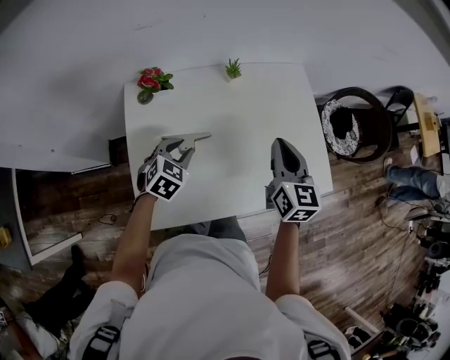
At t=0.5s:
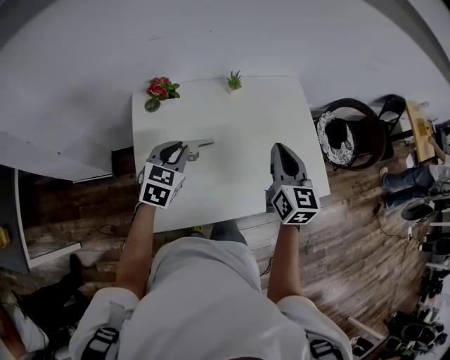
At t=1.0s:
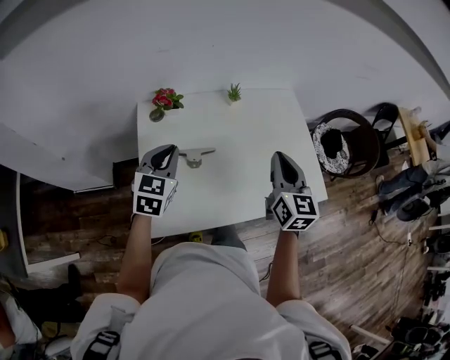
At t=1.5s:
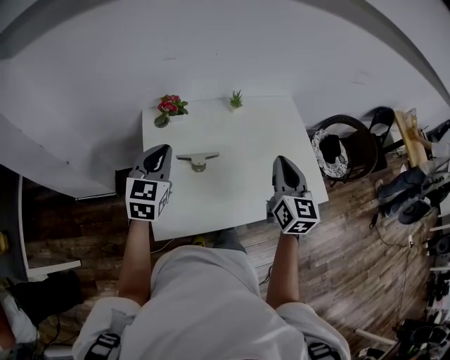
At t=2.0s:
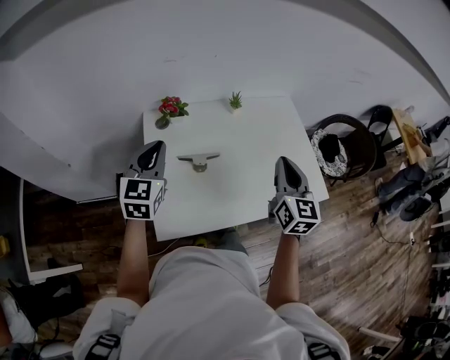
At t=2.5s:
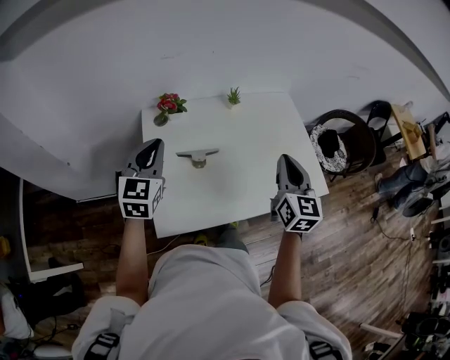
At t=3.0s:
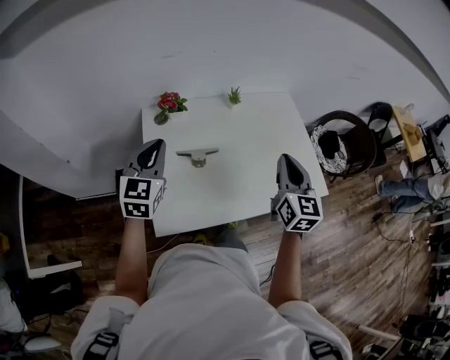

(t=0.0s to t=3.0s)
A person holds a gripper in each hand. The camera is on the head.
t=0.0s - t=1.5s: The right gripper heads backward and upward, covering about 10 cm. The left gripper is displaced upward and to the left by roughly 20 cm, angles its fingers upward, by approximately 30 degrees, and closes its fingers.
t=1.5s - t=3.0s: The grippers stay close to where they were, moving slightly.

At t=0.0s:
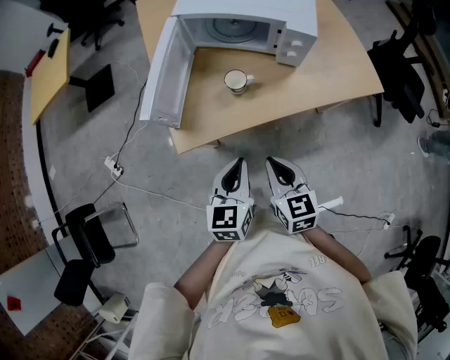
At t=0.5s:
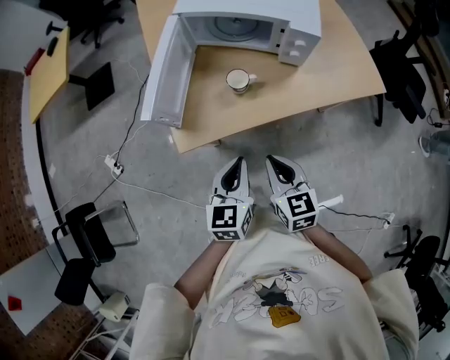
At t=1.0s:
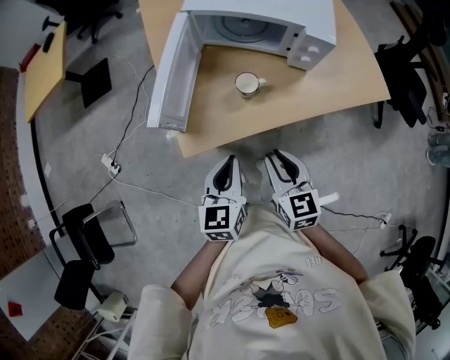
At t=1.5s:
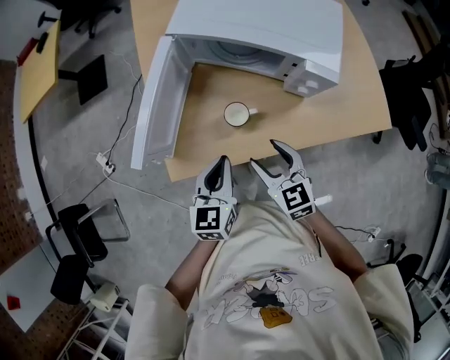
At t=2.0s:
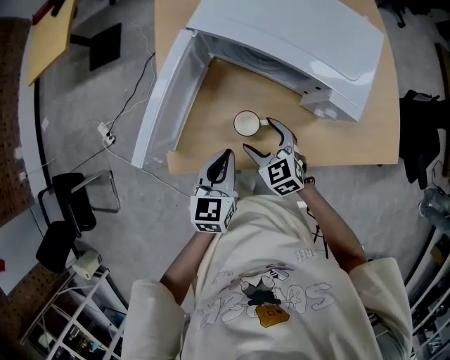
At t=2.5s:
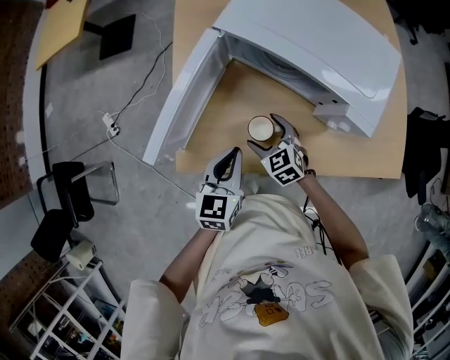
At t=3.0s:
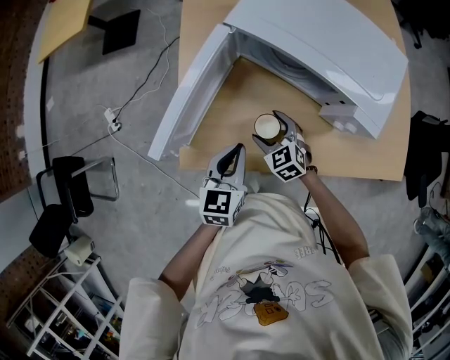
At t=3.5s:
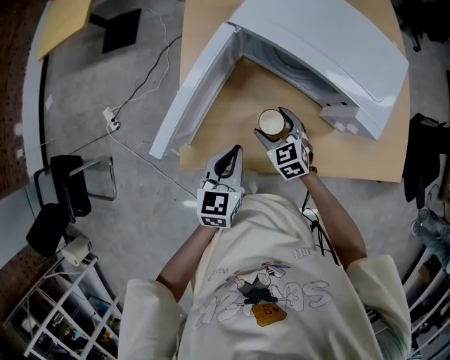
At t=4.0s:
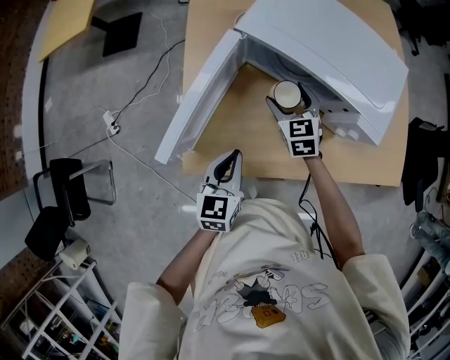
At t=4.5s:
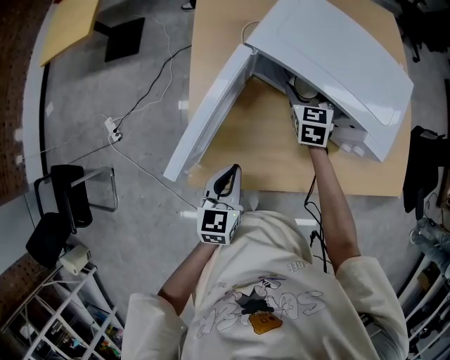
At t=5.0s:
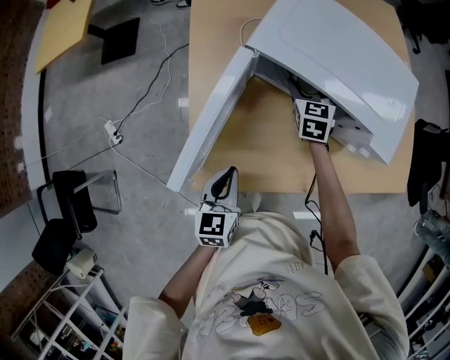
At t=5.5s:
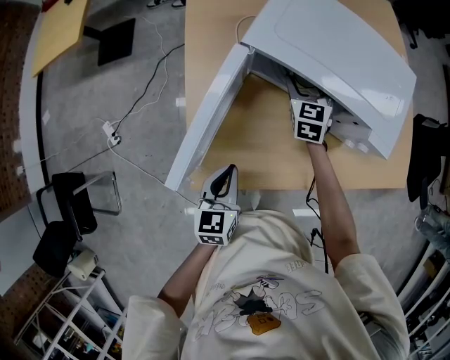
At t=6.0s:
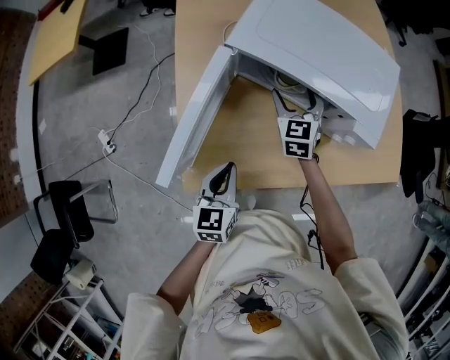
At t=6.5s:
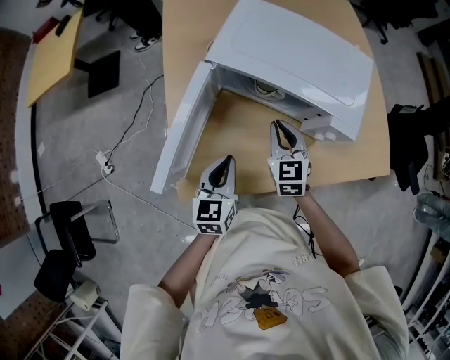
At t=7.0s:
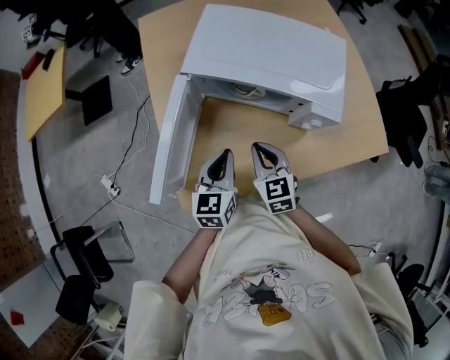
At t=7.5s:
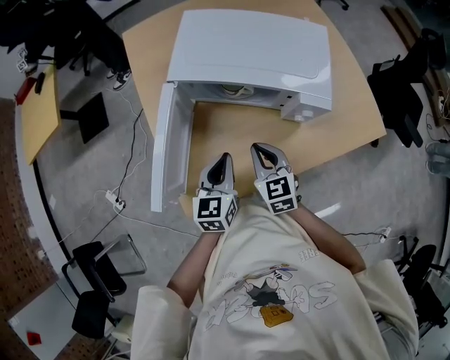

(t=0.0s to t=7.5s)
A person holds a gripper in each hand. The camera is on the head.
t=0.0s - t=2.0s: Both grippers move forward, some 25 cm. The right gripper changes its angle by about 40 degrees, and opens.
t=2.0s - t=4.0s: The left gripper changes place by about 5 cm. Meanwhile the right gripper is displaced forward by about 15 cm.
t=4.0s - t=5.5s: The right gripper travels forward by some 10 cm, and turns by some 20 degrees.
t=5.5s - t=7.5s: The left gripper travels to the right and forward by approximately 10 cm; the right gripper is displaced backward by roughly 25 cm, and closes up.

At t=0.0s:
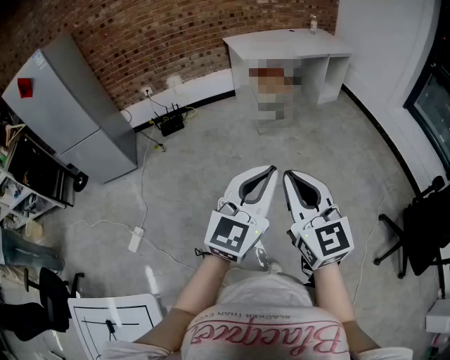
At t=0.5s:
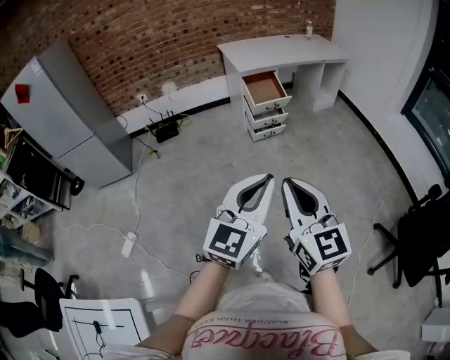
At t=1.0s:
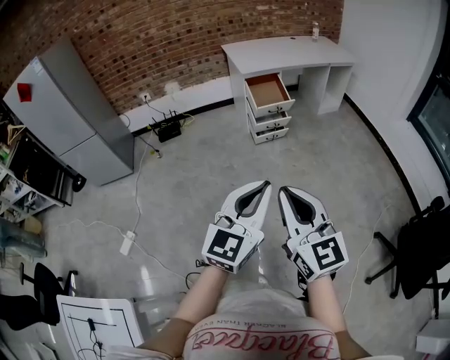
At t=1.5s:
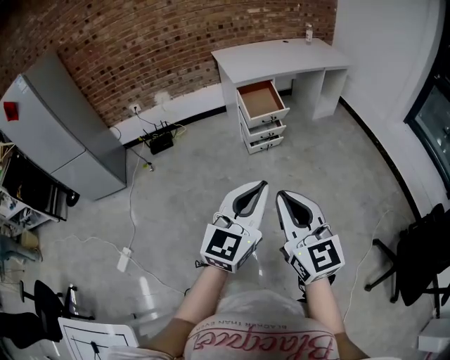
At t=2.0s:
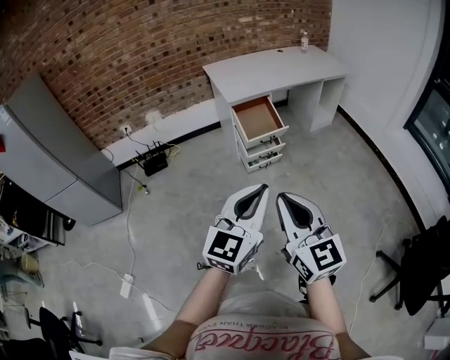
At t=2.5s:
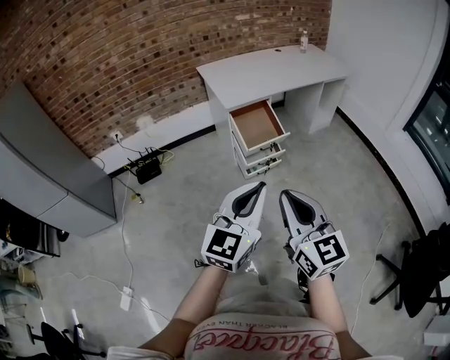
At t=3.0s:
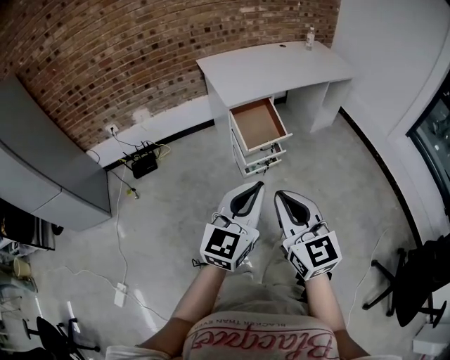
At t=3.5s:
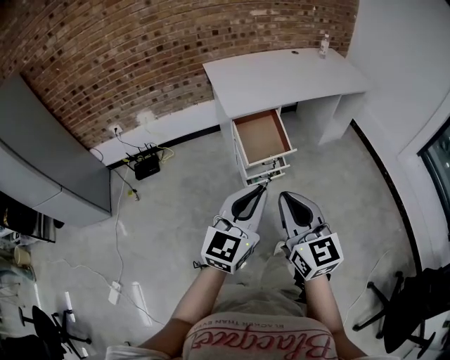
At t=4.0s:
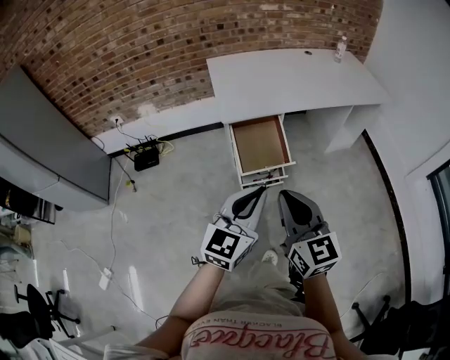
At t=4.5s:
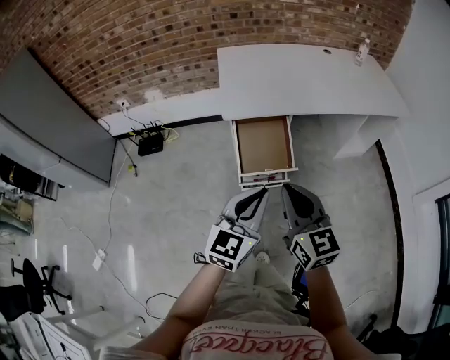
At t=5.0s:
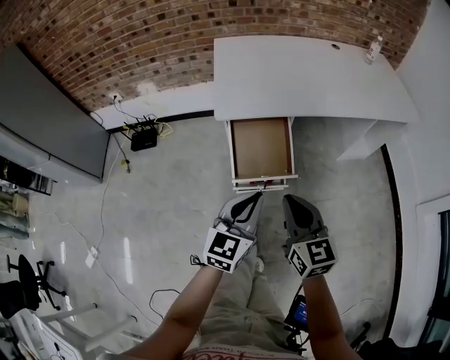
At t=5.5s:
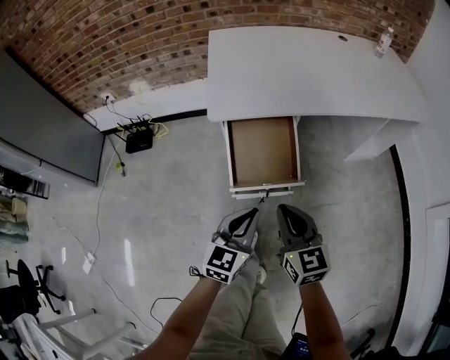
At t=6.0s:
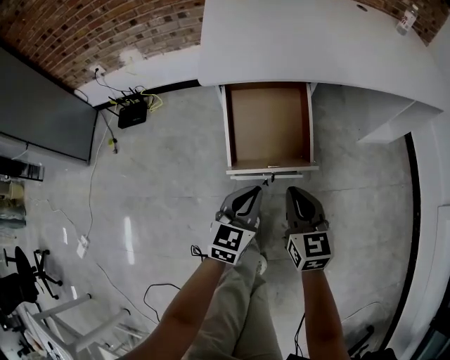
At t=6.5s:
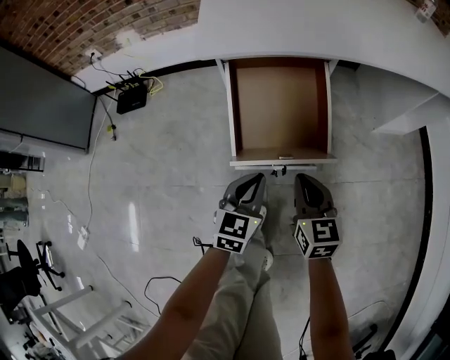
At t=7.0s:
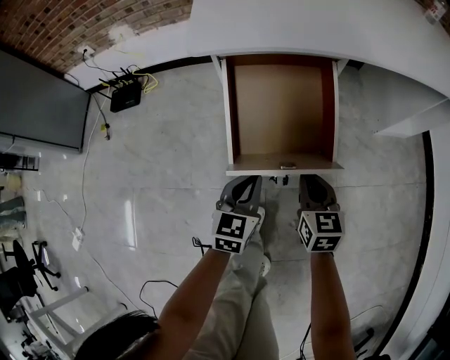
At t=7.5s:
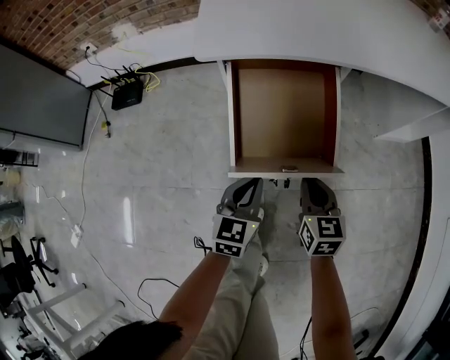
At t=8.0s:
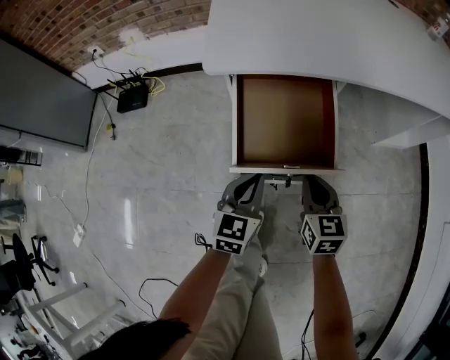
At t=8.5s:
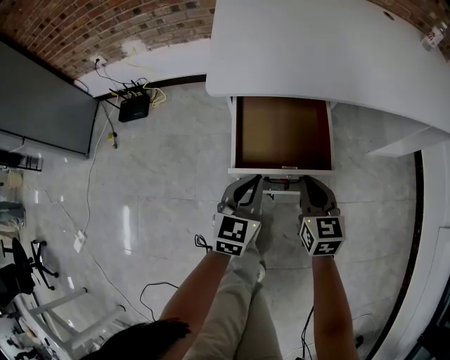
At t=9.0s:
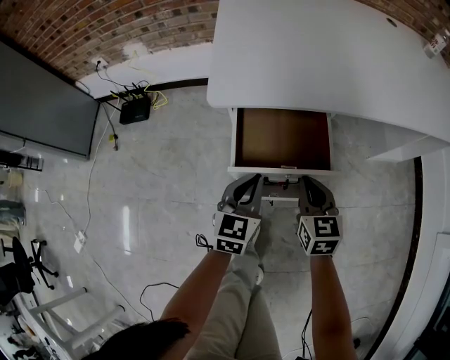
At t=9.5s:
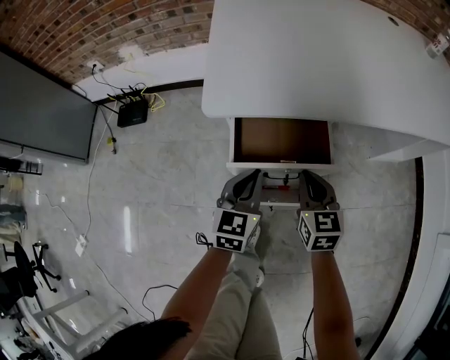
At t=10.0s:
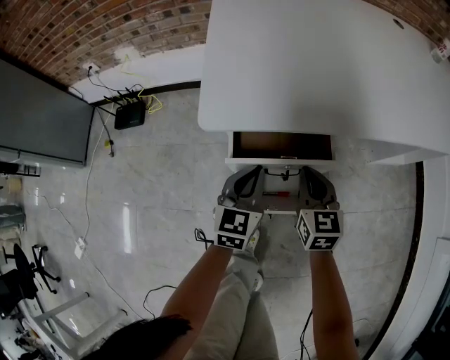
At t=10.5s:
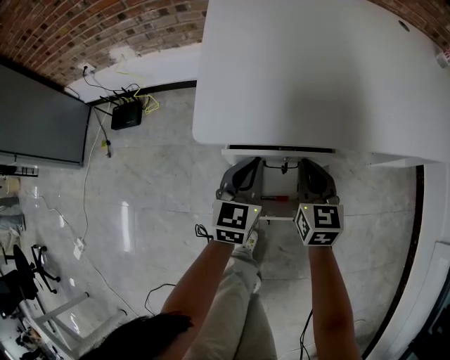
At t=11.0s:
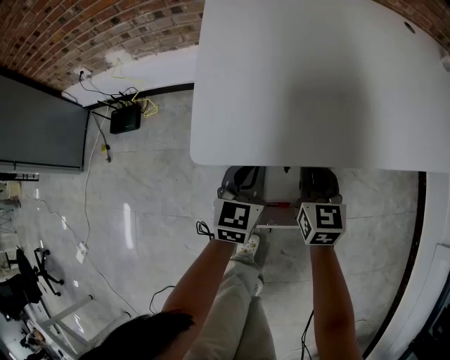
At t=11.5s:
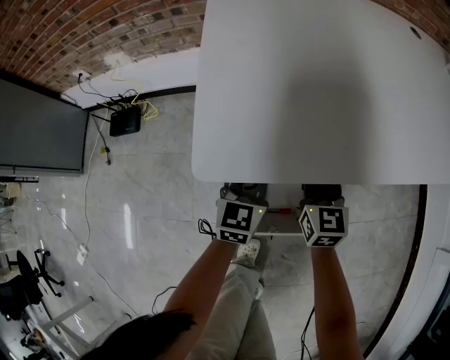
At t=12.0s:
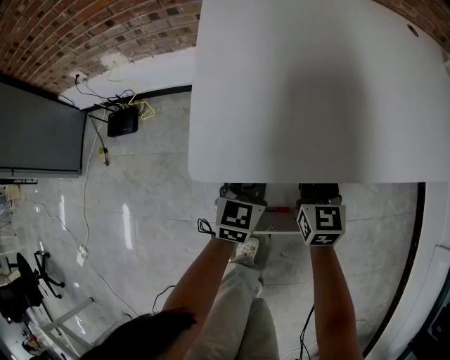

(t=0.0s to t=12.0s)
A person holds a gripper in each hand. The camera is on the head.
t=0.0s - t=2.0s: Both grippers travel together forward, approximately 30 cm.
t=2.0s - t=4.0s: Both grippers travel together forward, roughly 40 cm.
t=4.0s - t=6.0s: Both grippers travel together downward and forward, roughly 40 cm. The left gripper swivels approximately 20 degrees.
t=6.0s - t=8.0s: The left gripper shifts some 10 cm forward and downward. Meanwhile the right gripper goes about 15 cm downward and forward.
t=8.0s - t=10.0s: Both grippers move forward, about 10 cm.
t=10.0s - t=12.0s: The grippers both shift forward by approximately 10 cm.

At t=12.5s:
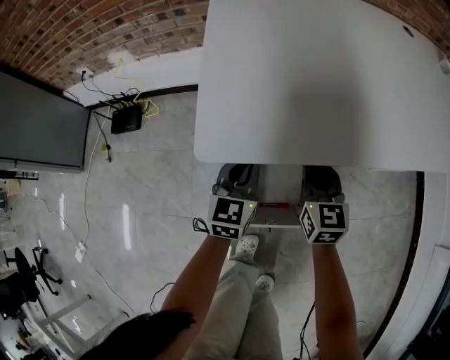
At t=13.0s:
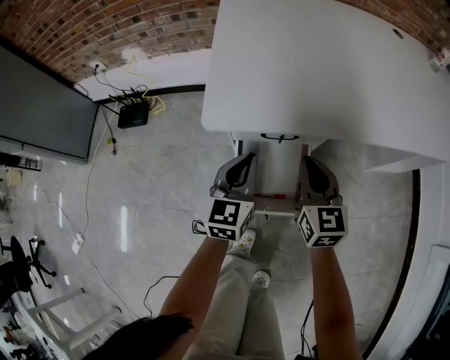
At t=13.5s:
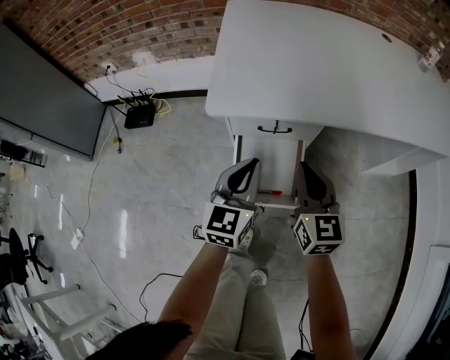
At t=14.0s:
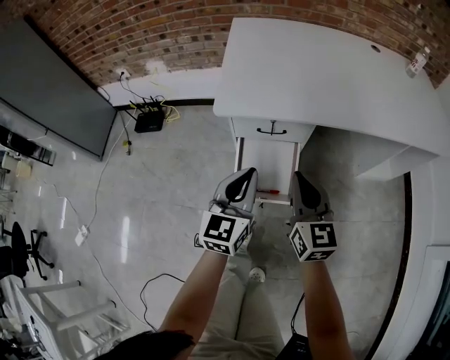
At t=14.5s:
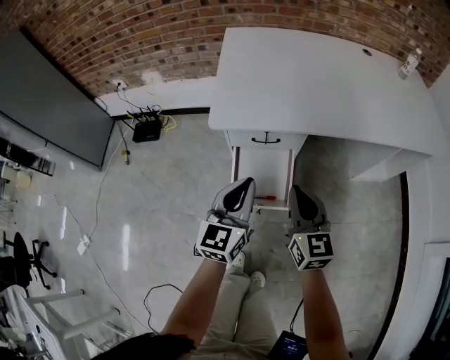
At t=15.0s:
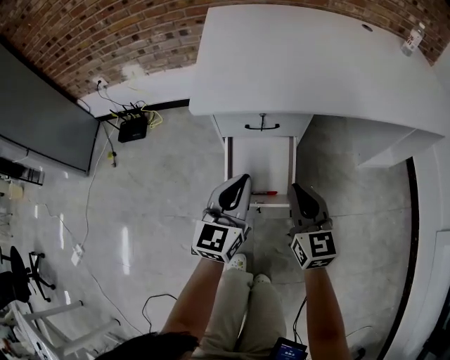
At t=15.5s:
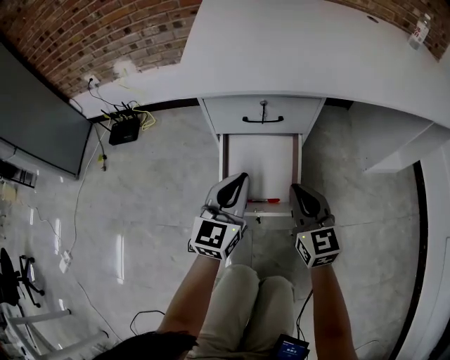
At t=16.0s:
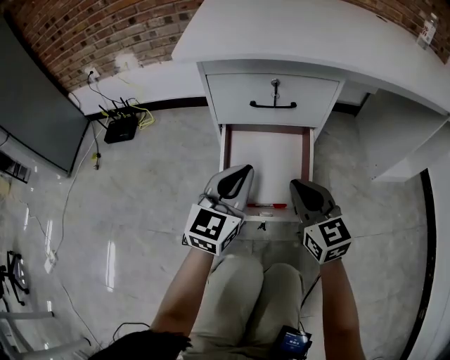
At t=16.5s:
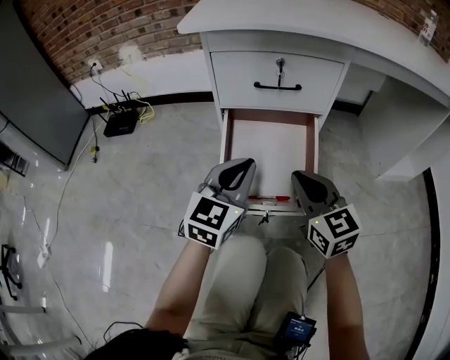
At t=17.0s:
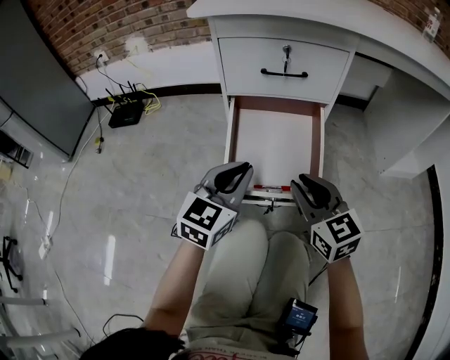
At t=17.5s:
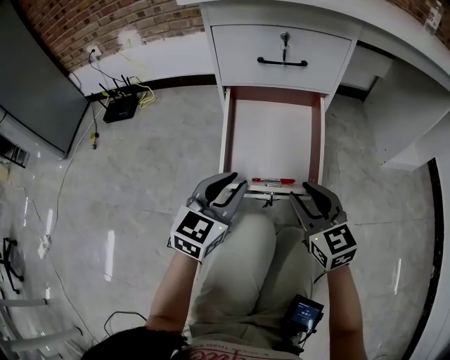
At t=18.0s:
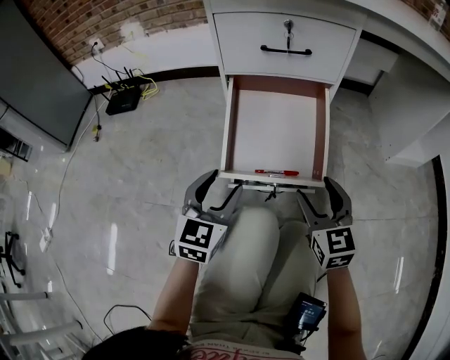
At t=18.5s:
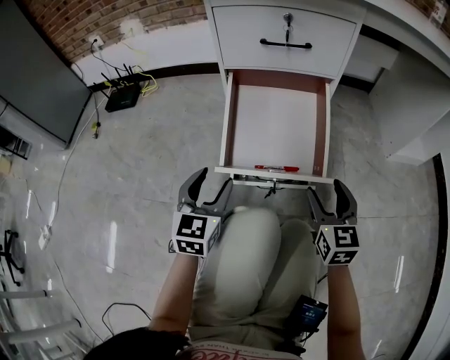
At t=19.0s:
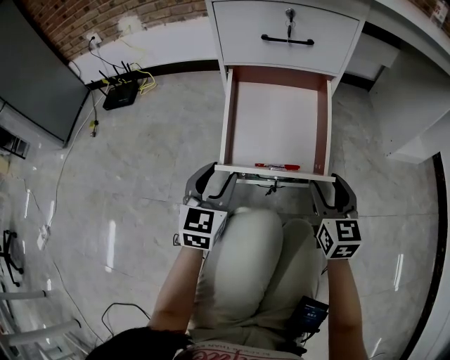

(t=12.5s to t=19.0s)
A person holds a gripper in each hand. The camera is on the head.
t=12.5s - t=14.5s: Both grippers move backward and upward, about 30 cm.
t=14.5s - t=17.0s: Both grippers move downward, some 35 cm.
t=17.0s - t=19.0s: The left gripper goes roughly 10 cm downward and to the left, and opens up; the right gripper moves downward and to the right, approximately 10 cm, swivels about 20 degrees, and opens.
